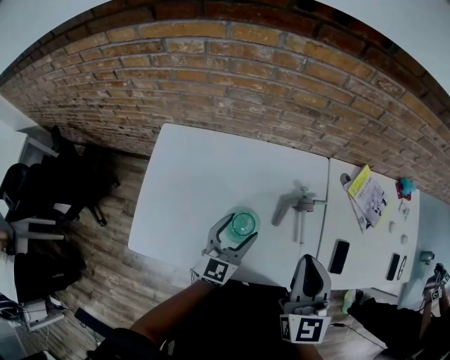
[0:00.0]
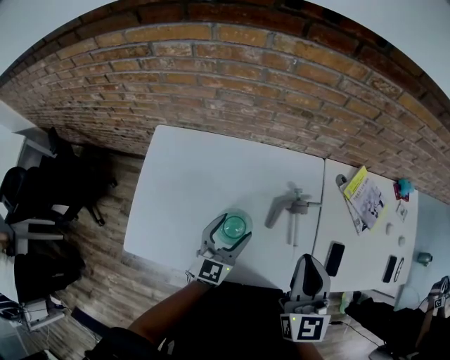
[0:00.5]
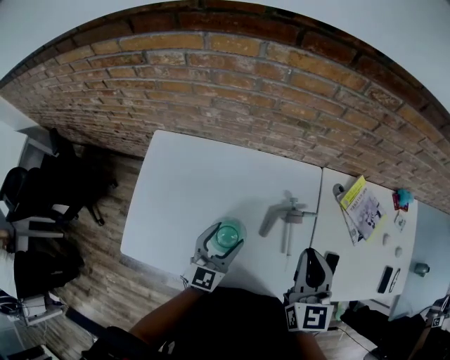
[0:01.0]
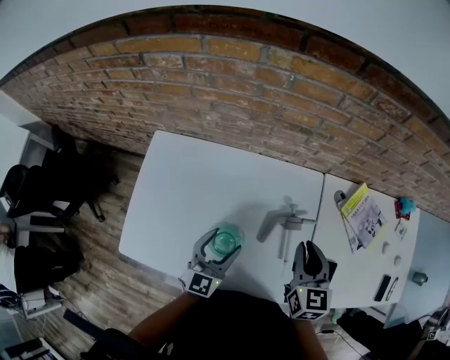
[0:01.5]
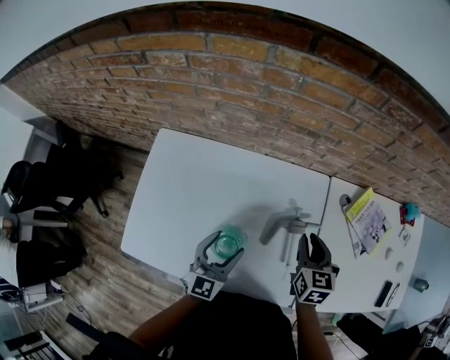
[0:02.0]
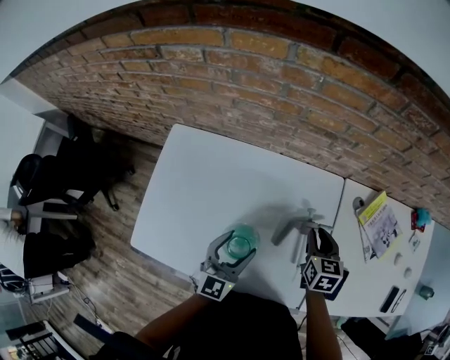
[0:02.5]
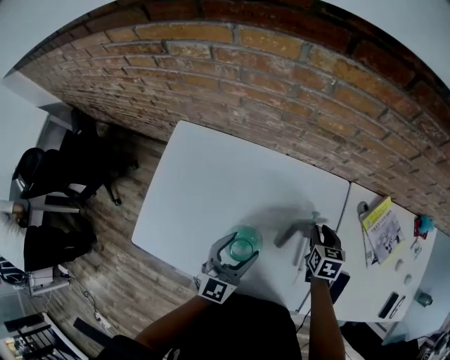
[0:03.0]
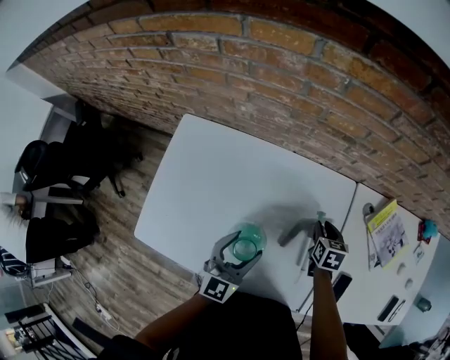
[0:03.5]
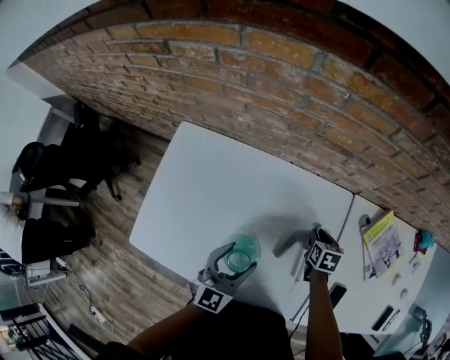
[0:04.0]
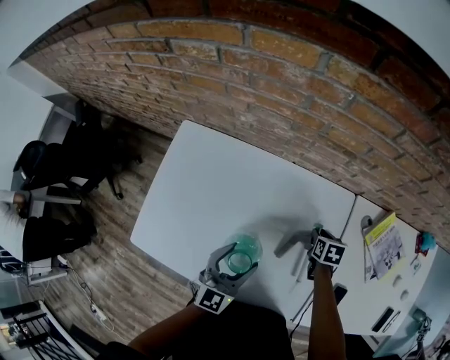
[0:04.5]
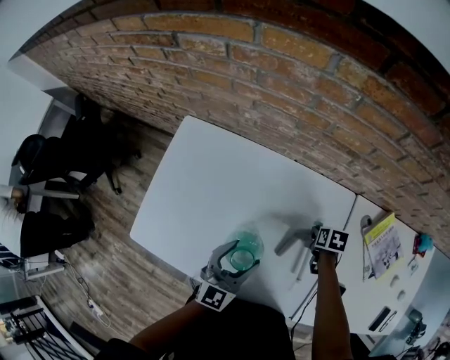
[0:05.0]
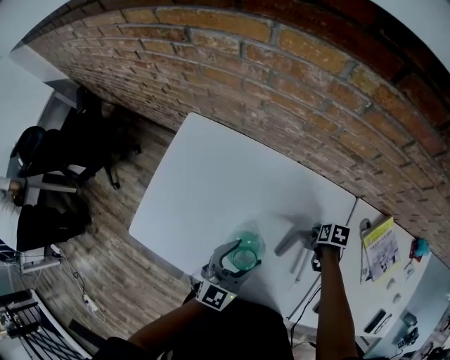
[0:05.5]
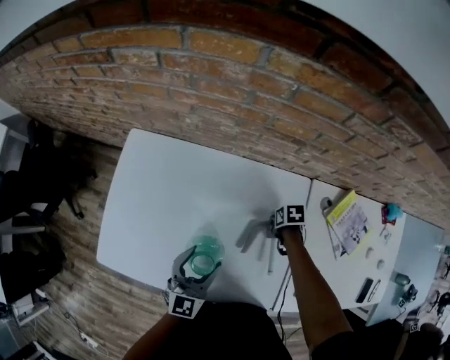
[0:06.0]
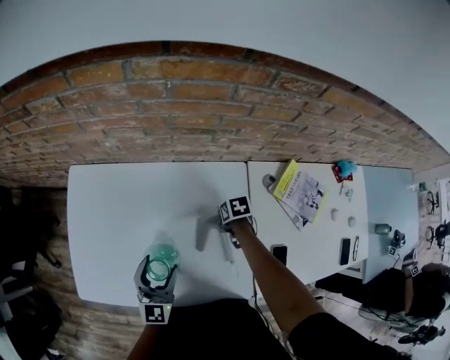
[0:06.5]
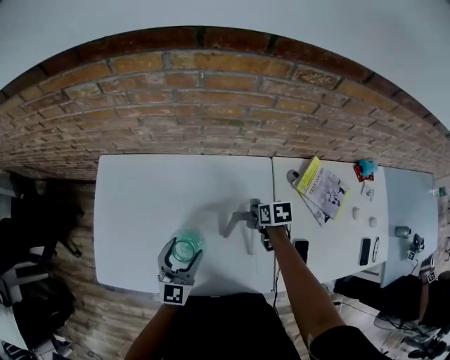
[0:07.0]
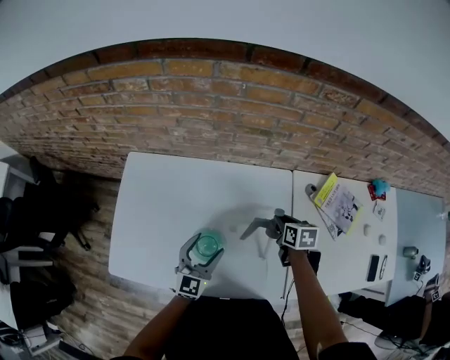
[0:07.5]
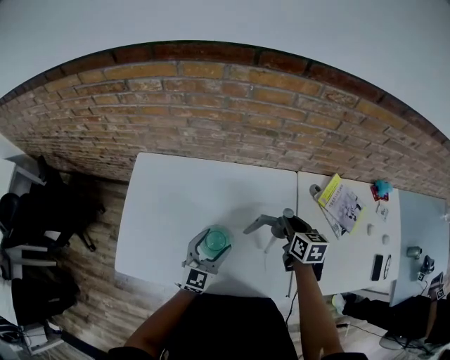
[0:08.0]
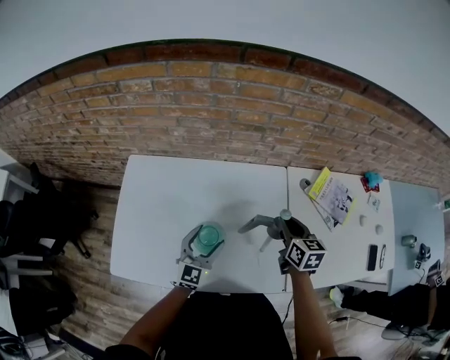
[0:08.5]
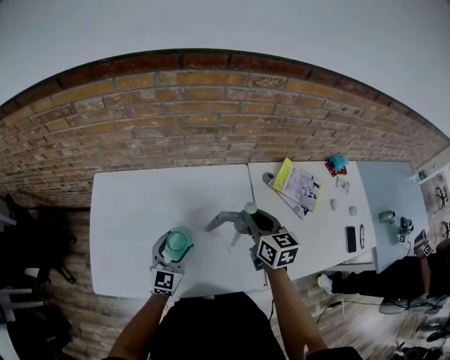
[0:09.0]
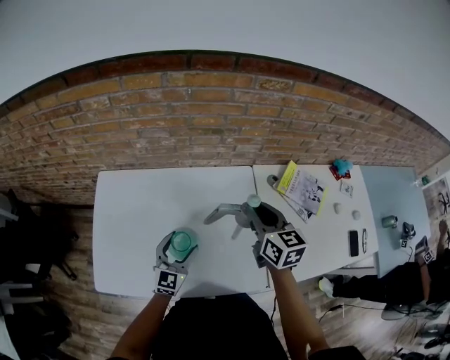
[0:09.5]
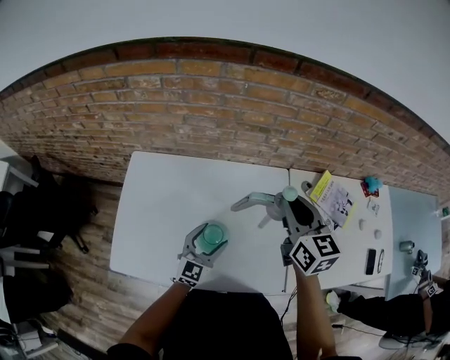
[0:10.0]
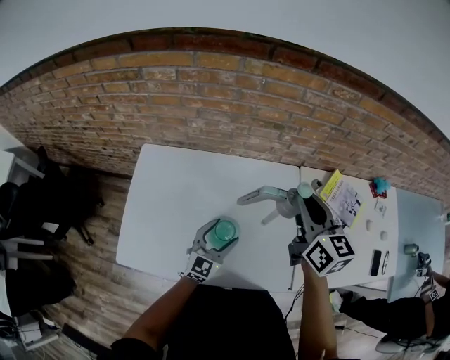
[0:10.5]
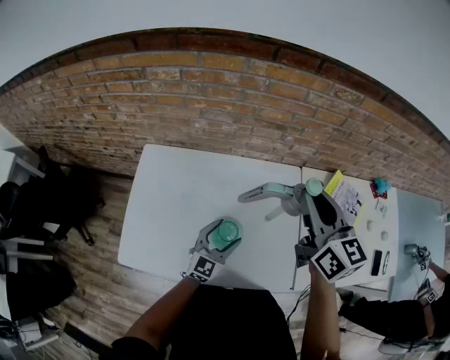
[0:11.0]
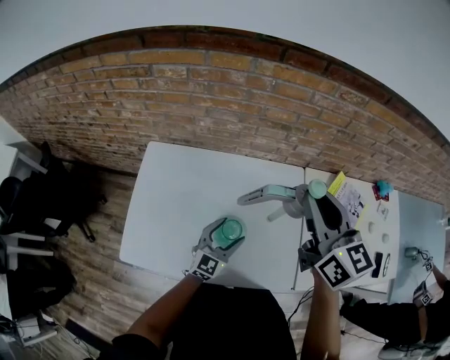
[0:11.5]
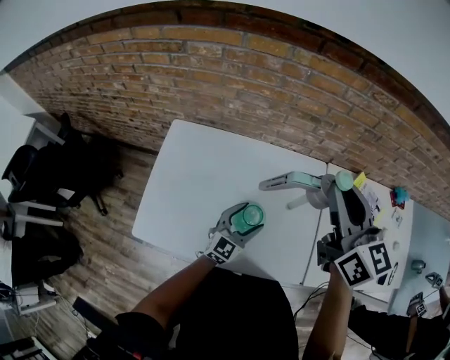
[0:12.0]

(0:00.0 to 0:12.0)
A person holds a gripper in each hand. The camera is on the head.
0:00.0 - 0:02.0: The right gripper moves forward, downward and to the right, roughly 25 cm, and changes its angle by approximately 30 degrees.
0:02.0 - 0:04.0: The right gripper goes about 20 cm downward and forward, and rotates roughly 20 degrees.
0:04.0 - 0:06.0: The right gripper swivels roughly 30 degrees.
0:06.0 - 0:08.0: The right gripper moves upward, some 20 cm, and angles its fingers upward, by roughly 40 degrees.
0:08.0 - 0:10.0: The right gripper moves upward, roughly 20 cm, and rotates about 30 degrees.
0:10.0 - 0:12.0: The right gripper goes about 10 cm upward and to the left.

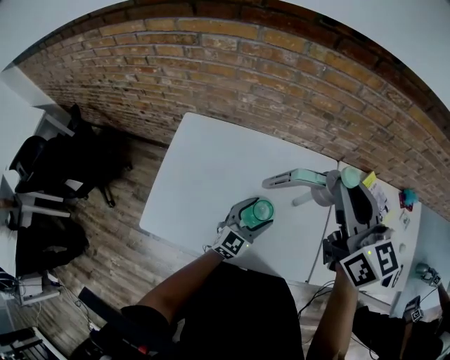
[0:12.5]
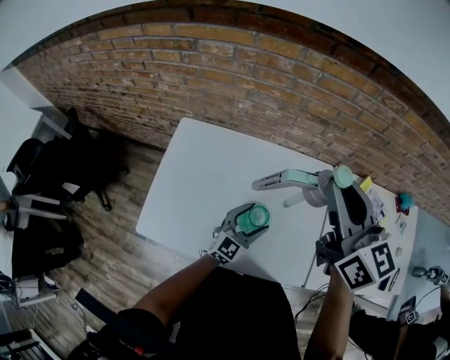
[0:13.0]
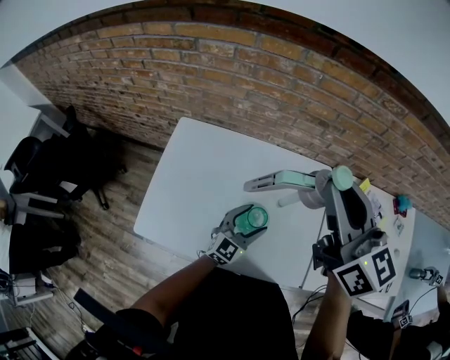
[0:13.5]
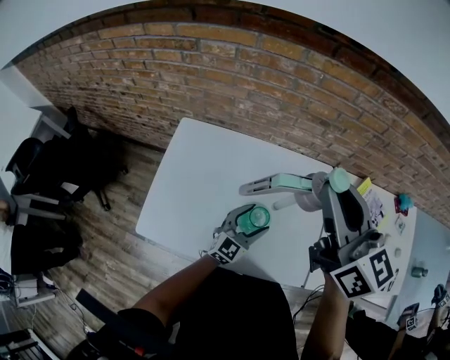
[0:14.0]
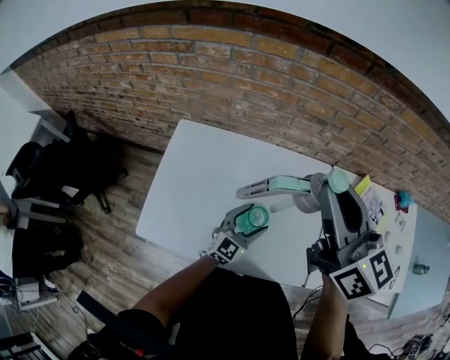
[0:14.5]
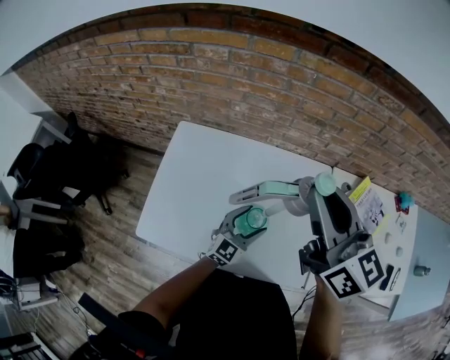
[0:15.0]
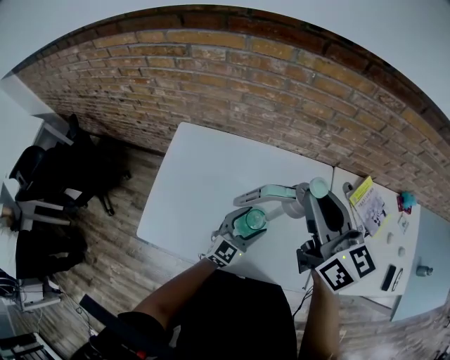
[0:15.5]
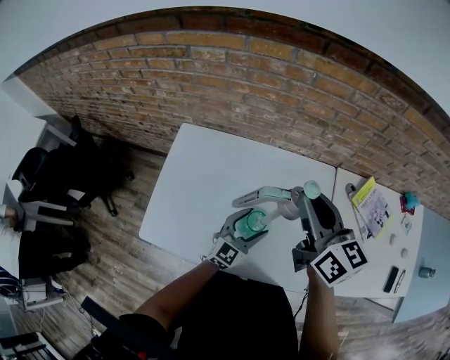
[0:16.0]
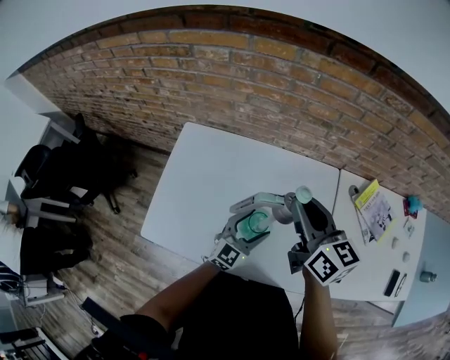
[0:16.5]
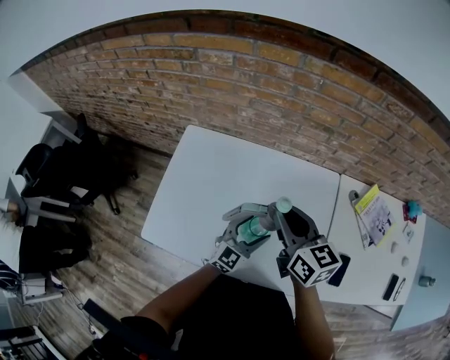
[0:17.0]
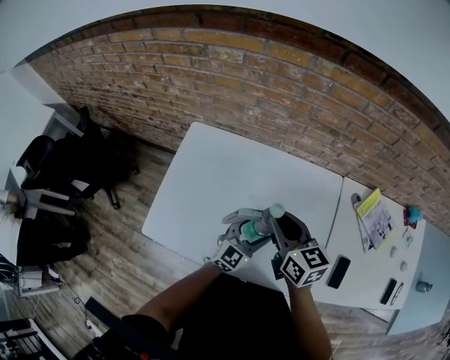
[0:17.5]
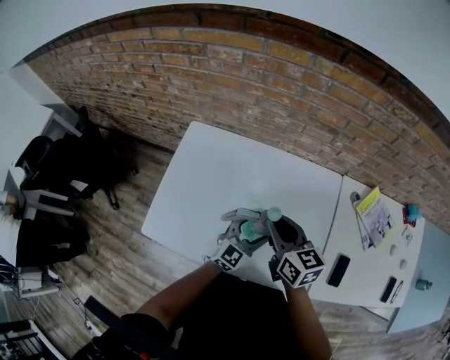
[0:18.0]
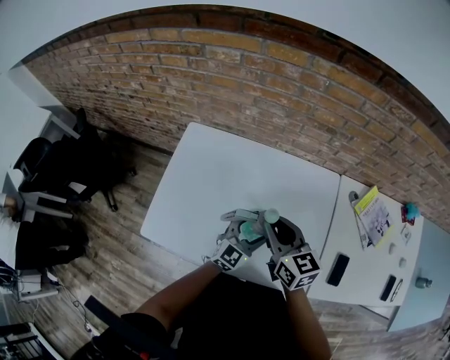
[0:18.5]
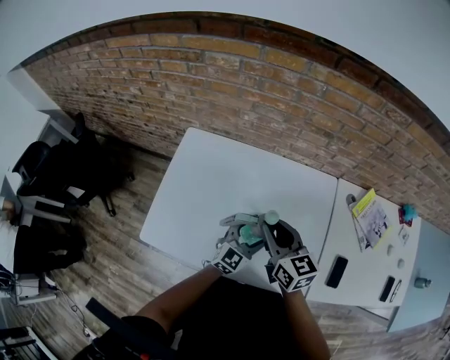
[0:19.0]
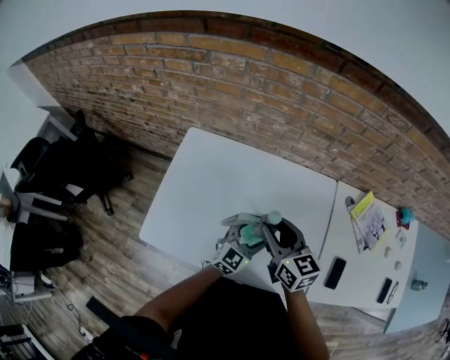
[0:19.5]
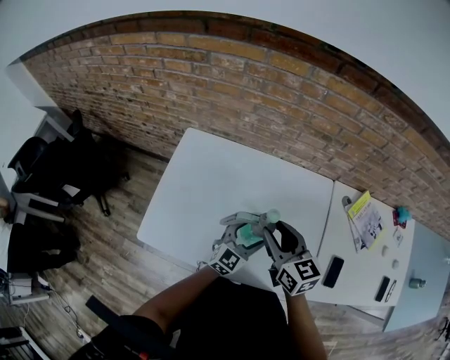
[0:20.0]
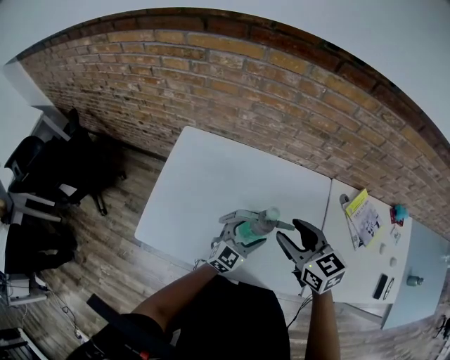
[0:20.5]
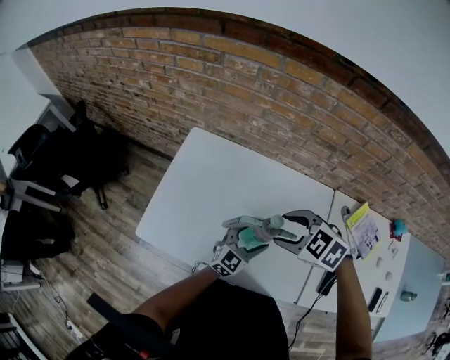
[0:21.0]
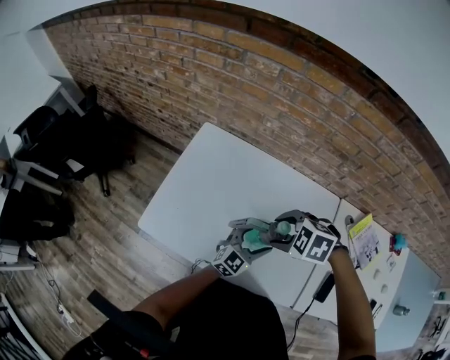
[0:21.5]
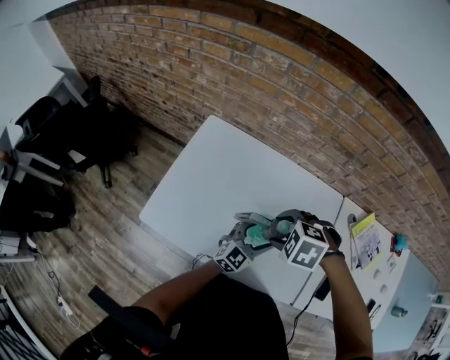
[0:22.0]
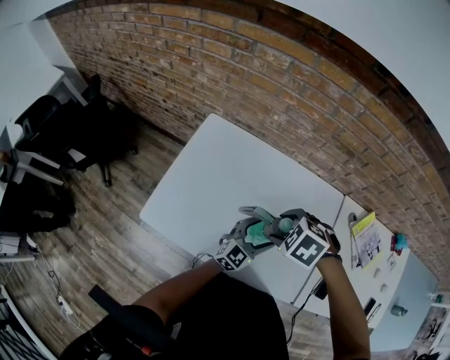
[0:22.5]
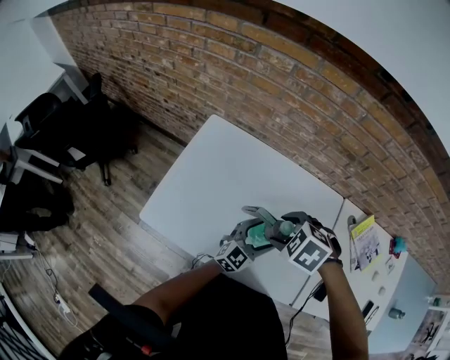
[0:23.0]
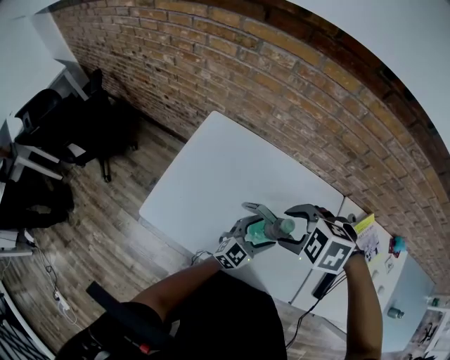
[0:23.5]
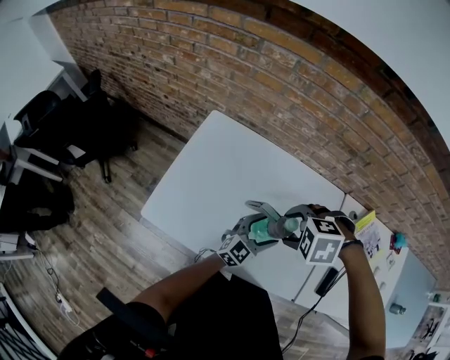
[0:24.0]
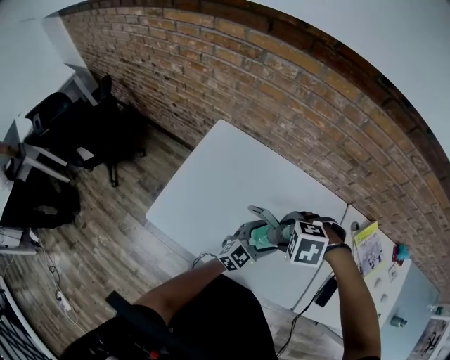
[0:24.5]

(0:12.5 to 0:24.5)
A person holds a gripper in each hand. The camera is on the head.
0:12.5 - 0:14.5: The grippers move only a little.
0:14.5 - 0:16.5: The right gripper is displaced downward by about 15 cm.
0:16.5 - 0:18.5: The right gripper heads downward and to the left, covering approximately 10 cm.
0:18.5 - 0:20.5: The right gripper changes place by some 5 cm, and opens its fingers.
0:20.5 - 0:22.5: The right gripper changes place by about 10 cm, and points its fingers approximately 50 degrees further downward.
0:22.5 - 0:24.5: The right gripper changes its angle by about 20 degrees.

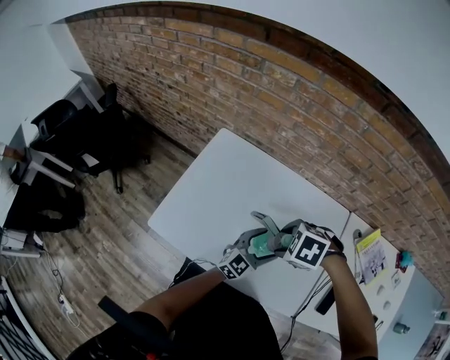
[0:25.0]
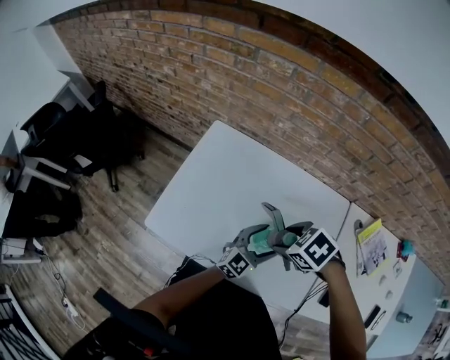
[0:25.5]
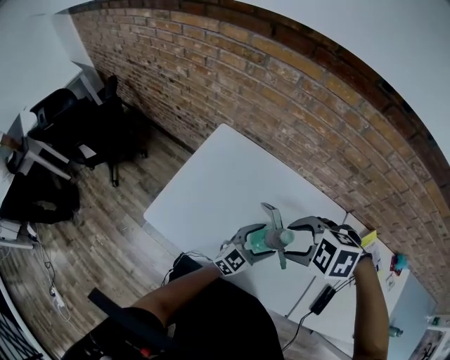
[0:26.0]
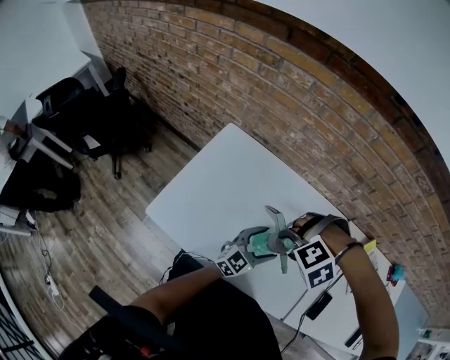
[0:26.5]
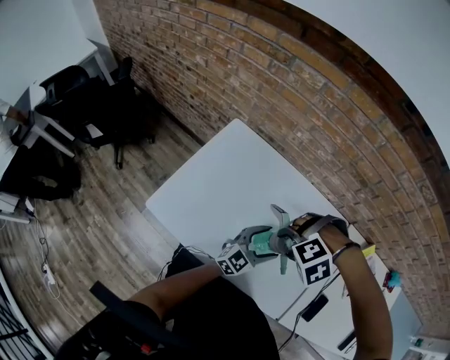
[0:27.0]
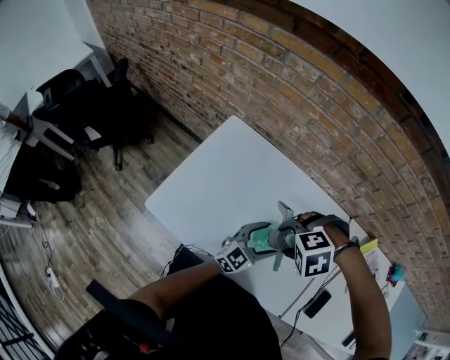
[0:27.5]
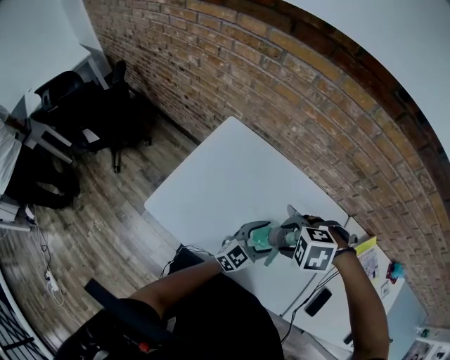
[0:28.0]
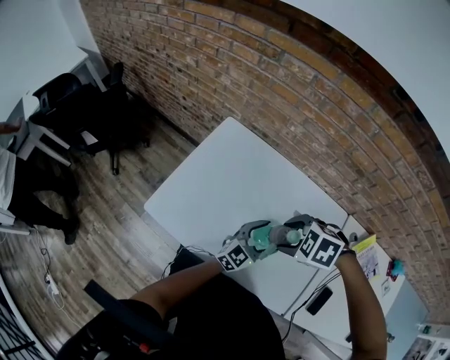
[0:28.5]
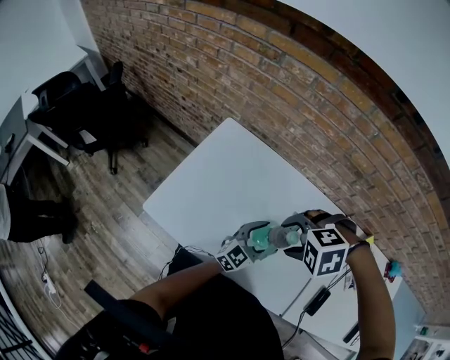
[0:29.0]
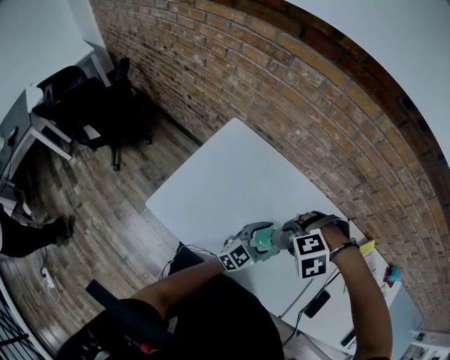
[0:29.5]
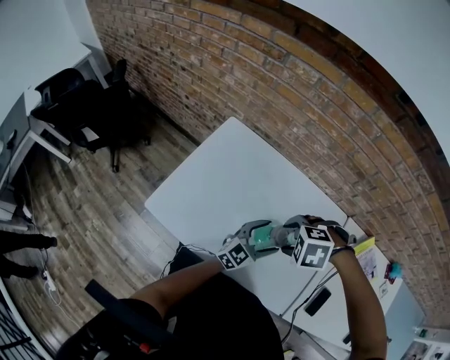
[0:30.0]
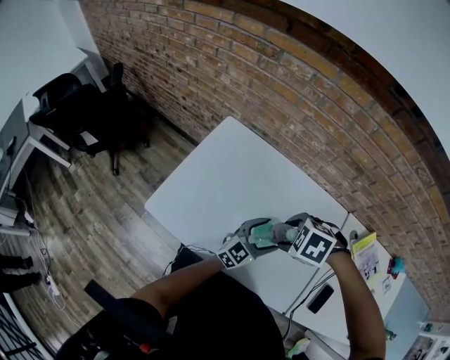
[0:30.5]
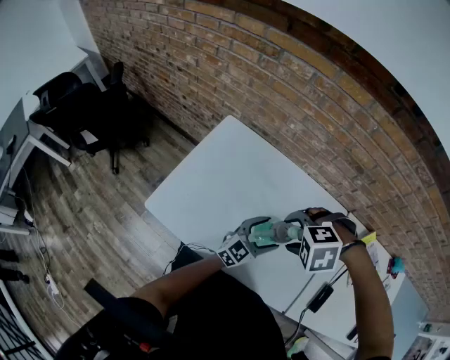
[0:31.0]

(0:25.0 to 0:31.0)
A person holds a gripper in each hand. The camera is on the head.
0:25.0 - 0:27.0: The right gripper moves about 5 cm upward and comes back, and rotates around the line of its fingers by about 60 degrees, counterclockwise from behind.
0:27.0 - 0:29.0: The right gripper rotates roughly 20 degrees.
